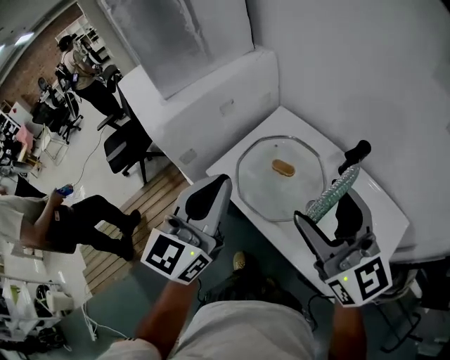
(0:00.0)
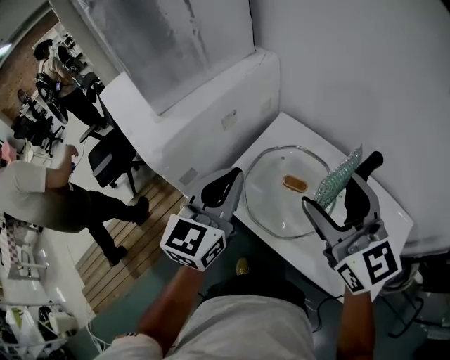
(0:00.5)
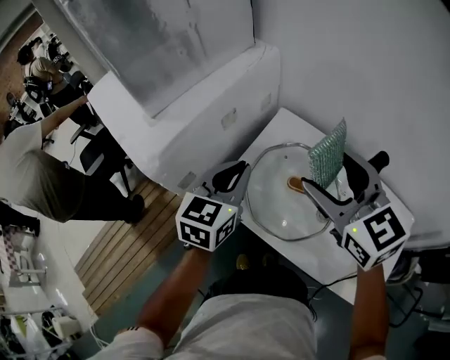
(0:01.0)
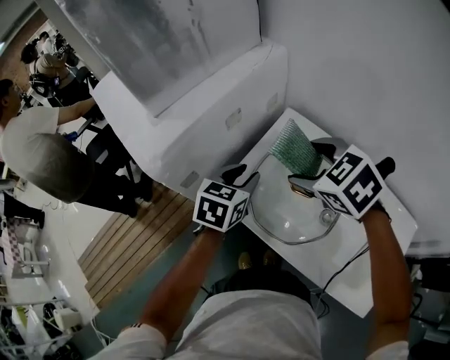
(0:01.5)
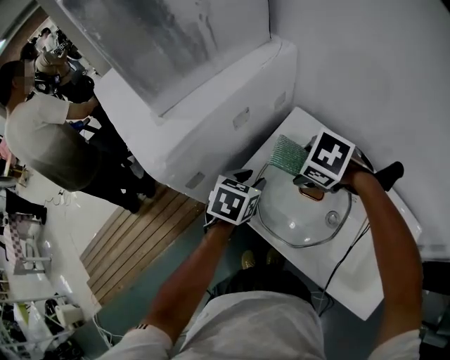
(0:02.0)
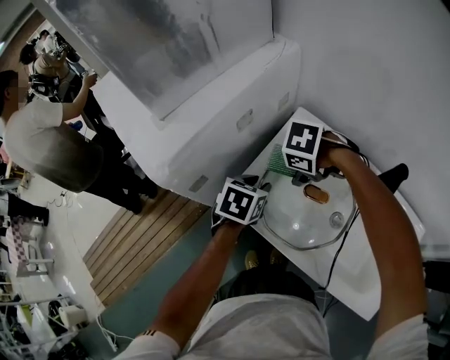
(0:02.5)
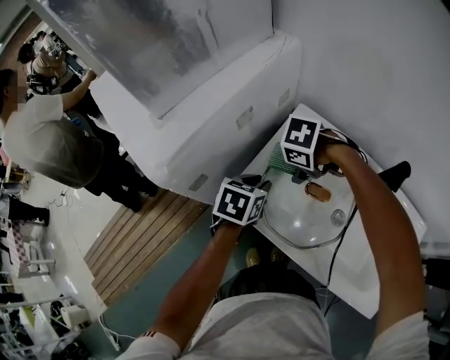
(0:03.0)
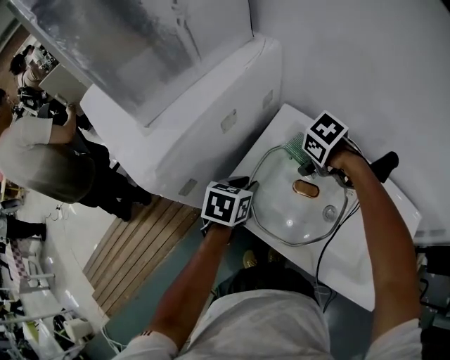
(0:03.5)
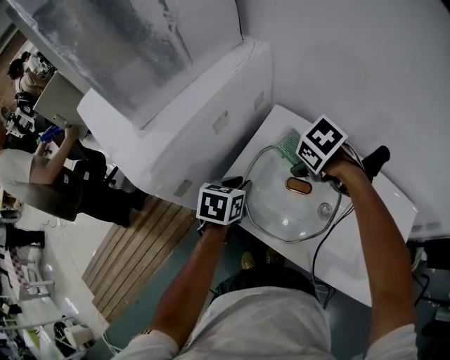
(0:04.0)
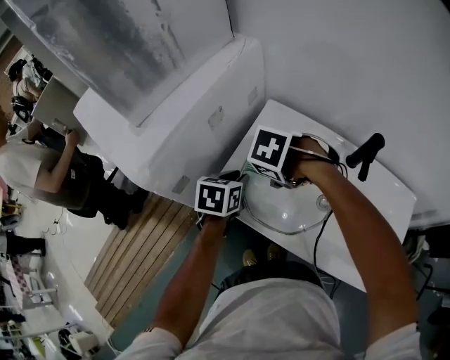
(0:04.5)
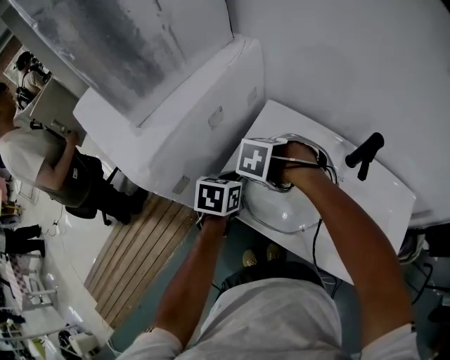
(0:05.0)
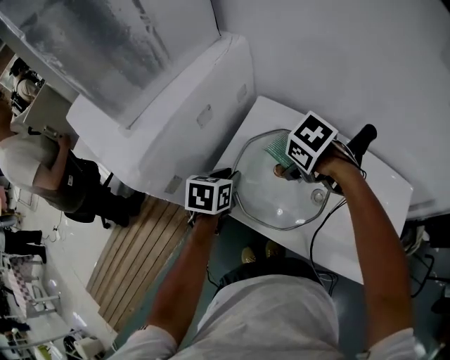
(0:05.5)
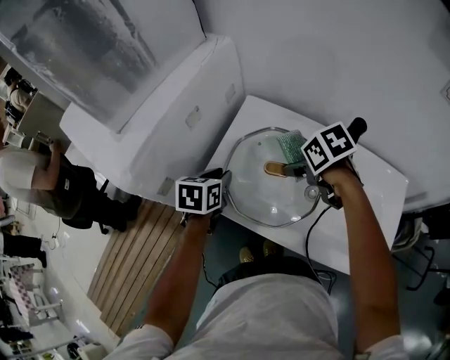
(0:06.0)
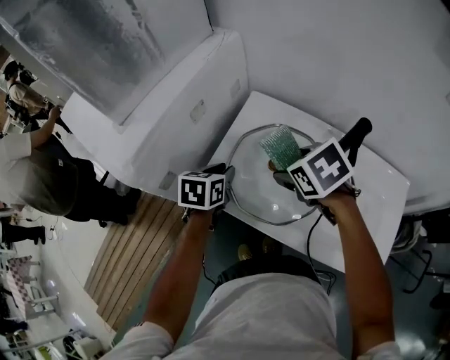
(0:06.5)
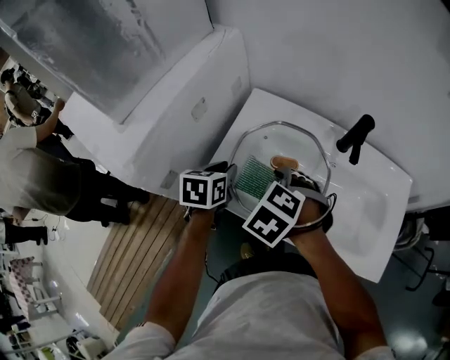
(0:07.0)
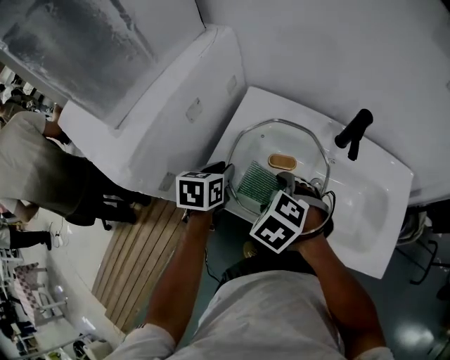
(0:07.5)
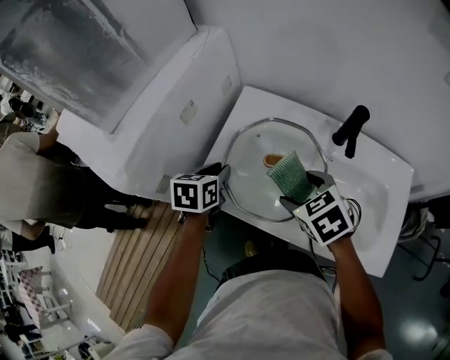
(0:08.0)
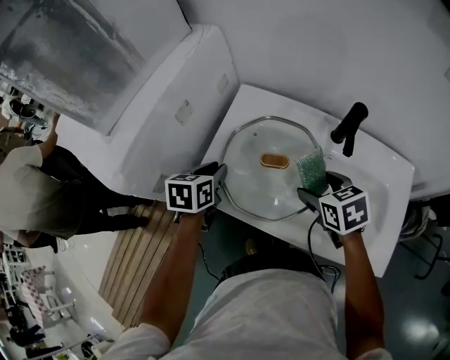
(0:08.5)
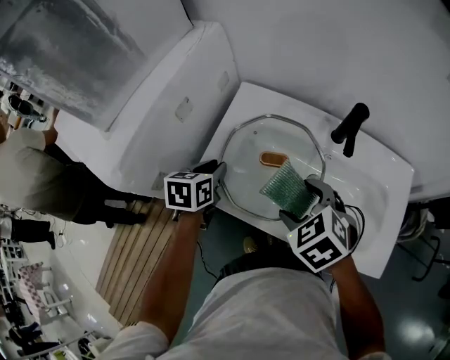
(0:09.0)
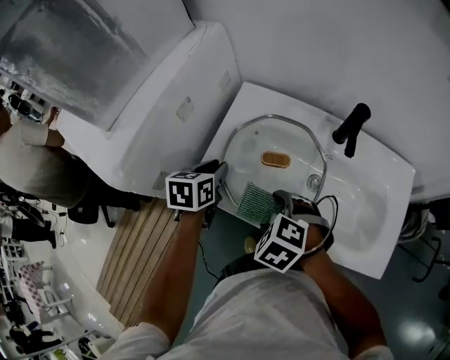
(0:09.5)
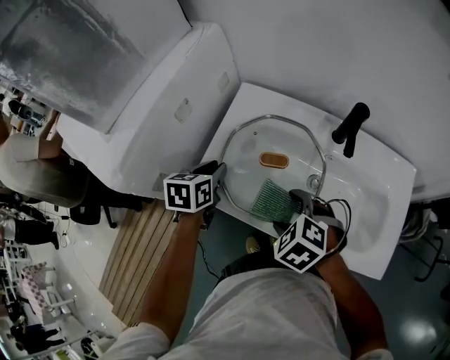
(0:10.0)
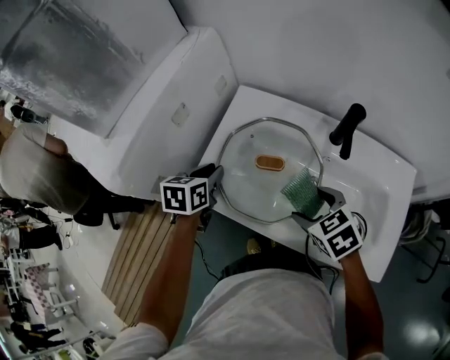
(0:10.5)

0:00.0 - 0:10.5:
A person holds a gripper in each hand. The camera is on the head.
0:00.0 - 0:02.0: The left gripper travels downward by roughly 25 cm, angles its fingers downward, by about 50 degrees, and opens. The right gripper changes place by some 30 cm, and points its fingers roughly 80 degrees further downward.
0:02.0 - 0:04.0: The right gripper shifts by some 5 cm, and turns by approximately 30 degrees.
0:04.0 - 0:06.5: The right gripper ends up some 10 cm from where it was.
0:06.5 - 0:08.5: The right gripper is displaced to the right and downward by approximately 10 cm.
0:08.5 - 0:10.5: The right gripper reaches approximately 15 cm to the left, then returns.

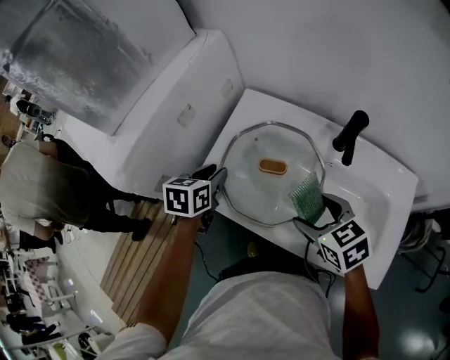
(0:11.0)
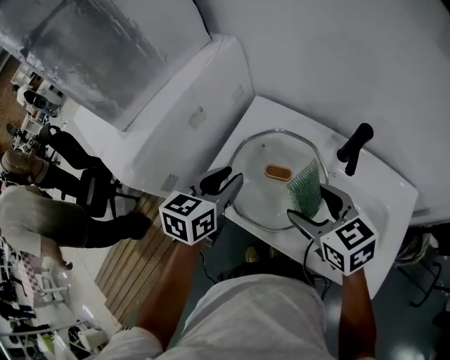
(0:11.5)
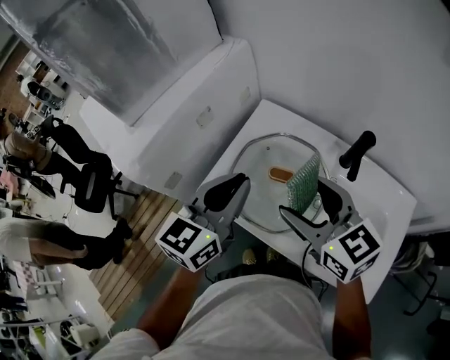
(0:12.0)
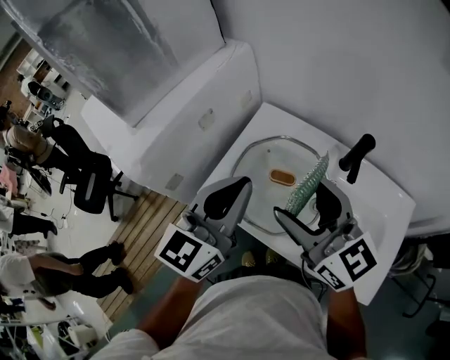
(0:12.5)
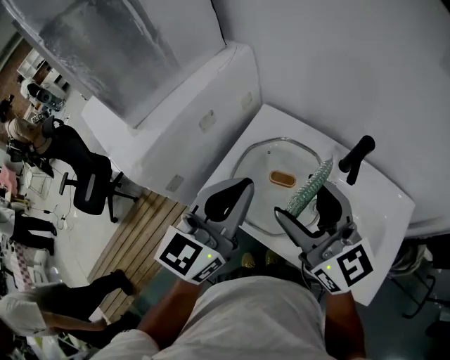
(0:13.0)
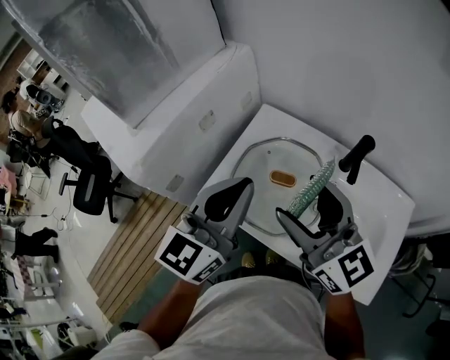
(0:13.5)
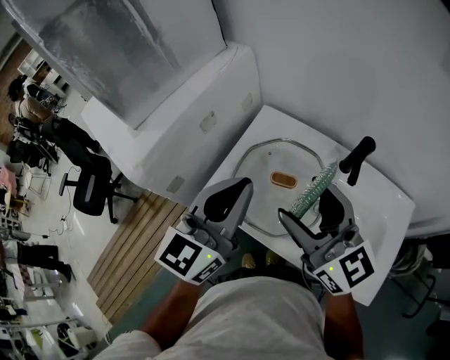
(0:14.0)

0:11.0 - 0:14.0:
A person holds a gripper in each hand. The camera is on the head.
0:11.0 - 0:12.5: The left gripper is displaced upward by roughly 20 cm, angles its fingers upward, by some 40 degrees, and closes up, while the right gripper travels upward and to the left by approximately 20 cm, and tips its fingers upward by approximately 40 degrees.
0:12.5 - 0:14.0: Both grippers stay put.

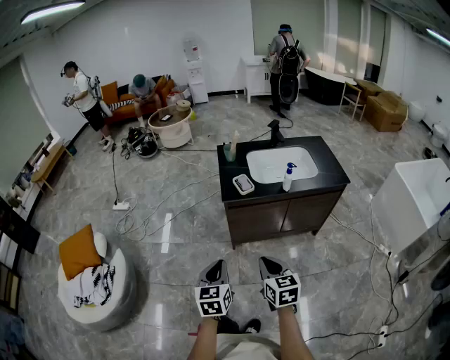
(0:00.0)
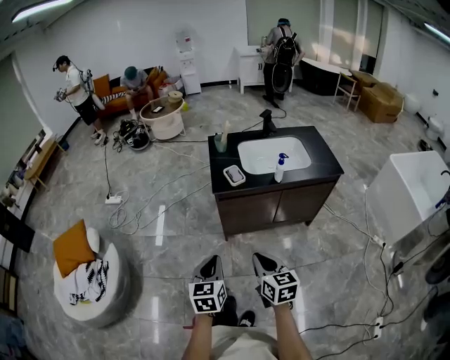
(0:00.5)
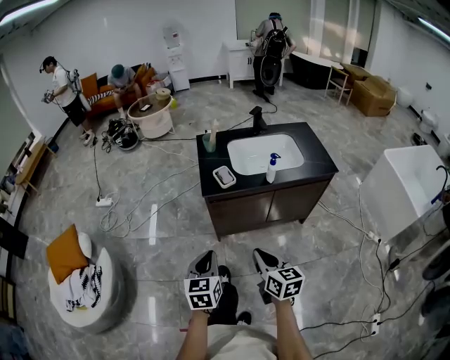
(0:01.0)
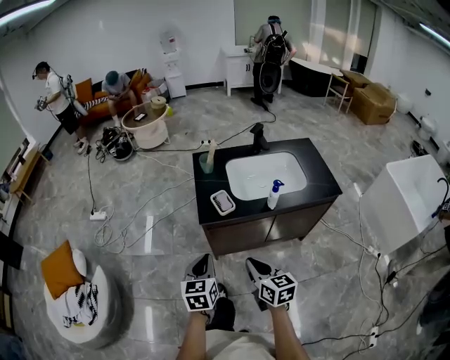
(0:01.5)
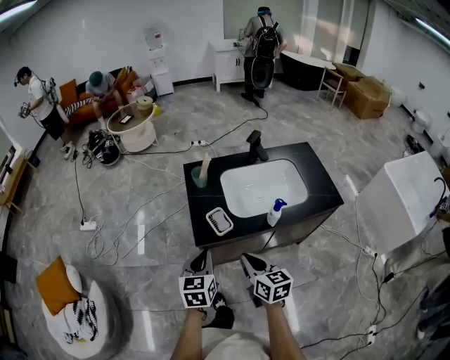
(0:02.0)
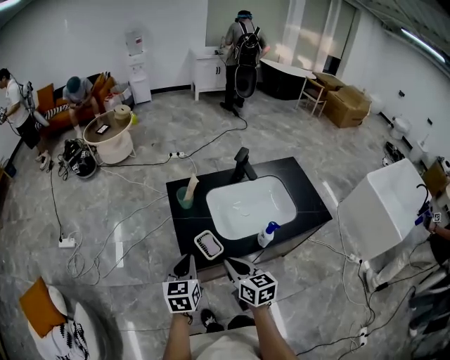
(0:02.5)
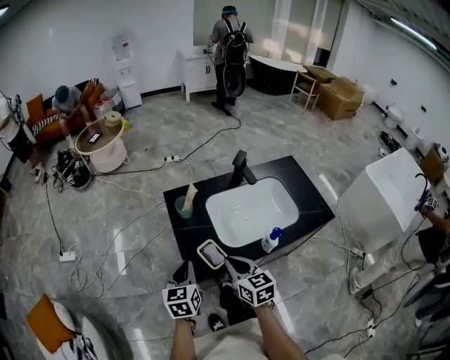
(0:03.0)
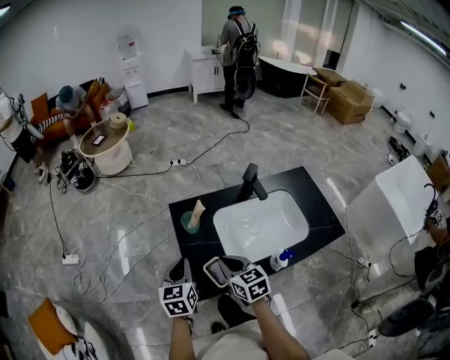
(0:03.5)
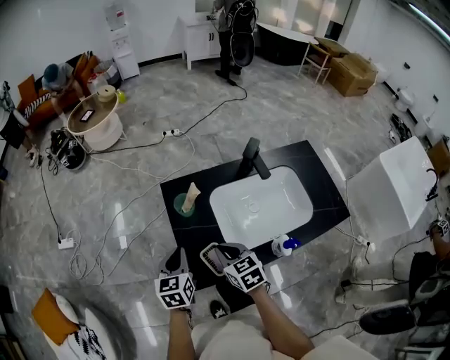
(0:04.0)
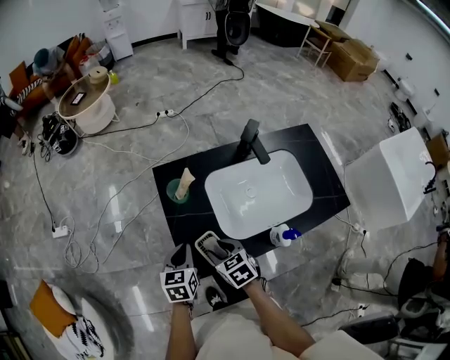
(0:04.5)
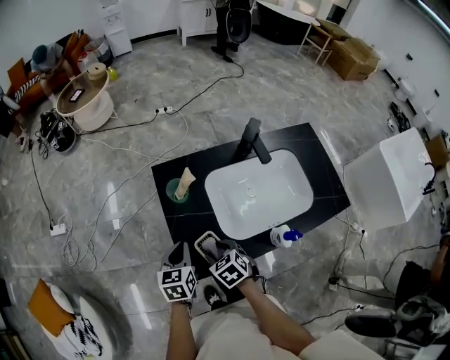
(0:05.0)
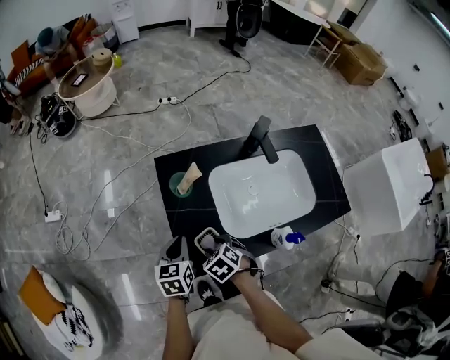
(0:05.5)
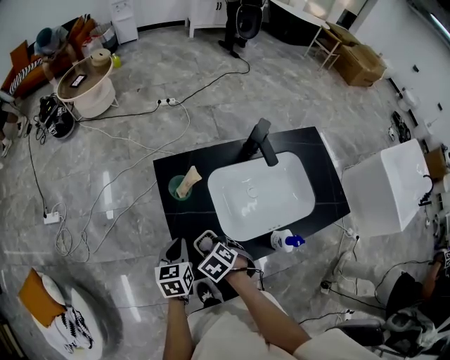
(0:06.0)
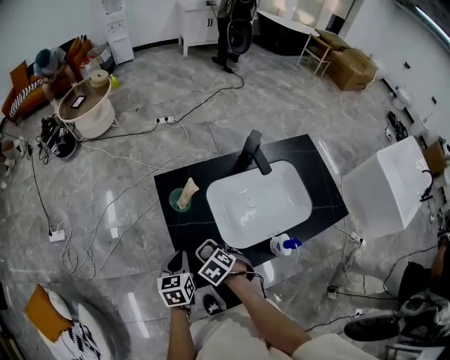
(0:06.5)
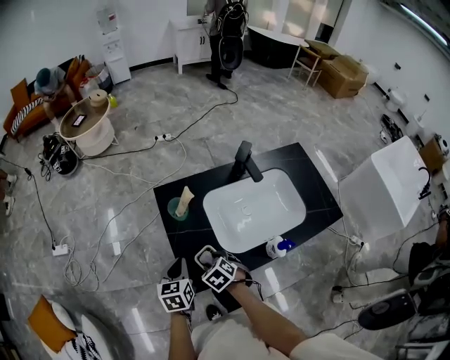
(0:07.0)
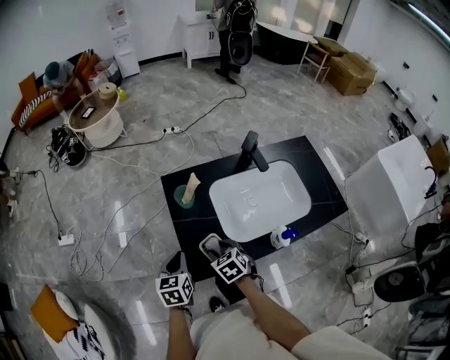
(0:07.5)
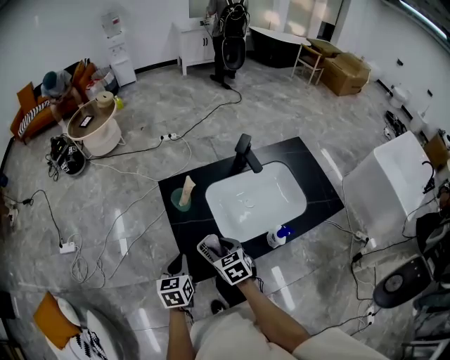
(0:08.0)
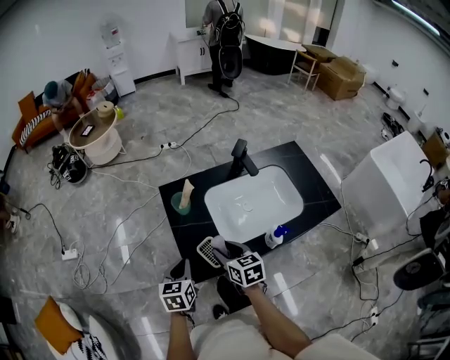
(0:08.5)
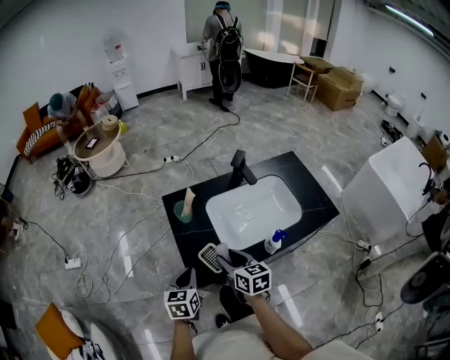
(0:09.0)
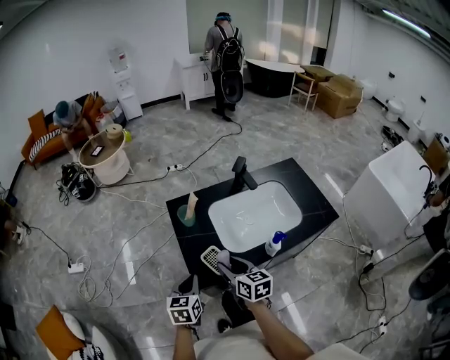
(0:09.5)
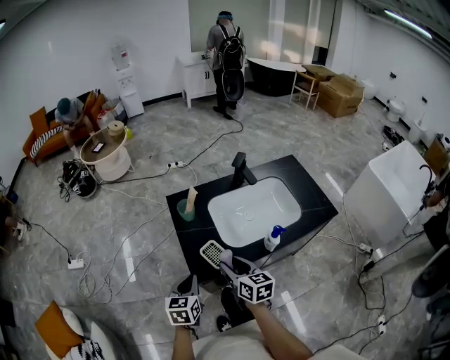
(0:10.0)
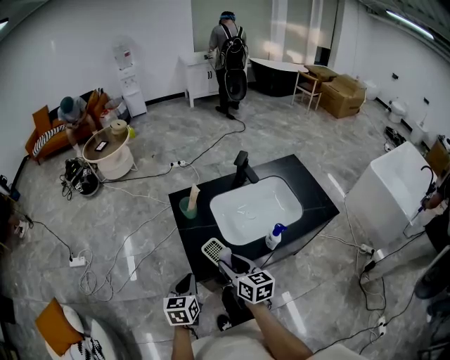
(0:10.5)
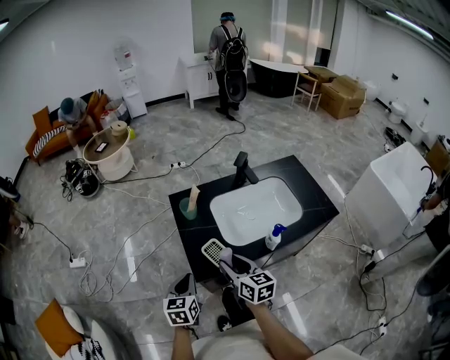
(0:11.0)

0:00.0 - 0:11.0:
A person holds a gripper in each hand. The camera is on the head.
0:00.0 - 0:02.0: The grippers both shift forward by roughly 25 cm.
0:02.0 - 0:03.5: Both grippers travel together forward, about 20 cm.
0:03.5 - 0:05.5: The two grippers go about 10 cm downward. The right gripper points its fingers some 40 degrees further downward, and opens its fingers.
0:05.5 - 0:07.5: The right gripper rotates roughly 20 degrees.
0:07.5 - 0:09.0: The left gripper shifts by about 5 cm. The right gripper moves upward, some 10 cm, and rotates roughly 40 degrees.
0:09.0 - 0:11.0: There are only small adjustments of the grippers.

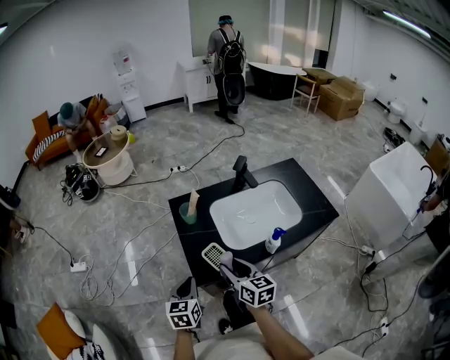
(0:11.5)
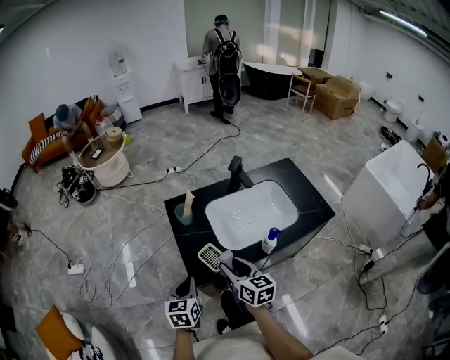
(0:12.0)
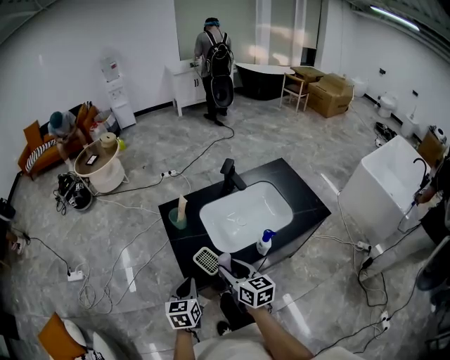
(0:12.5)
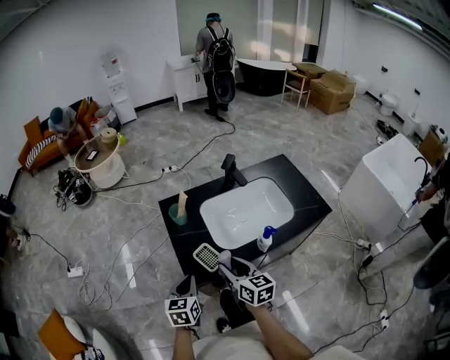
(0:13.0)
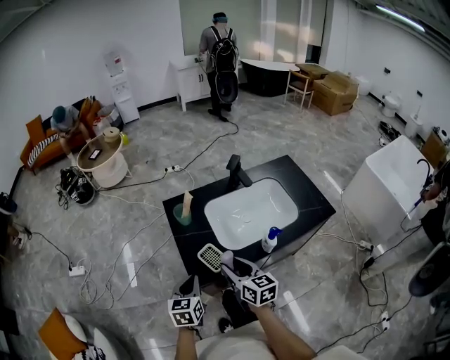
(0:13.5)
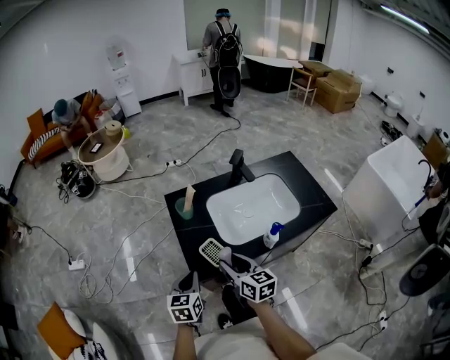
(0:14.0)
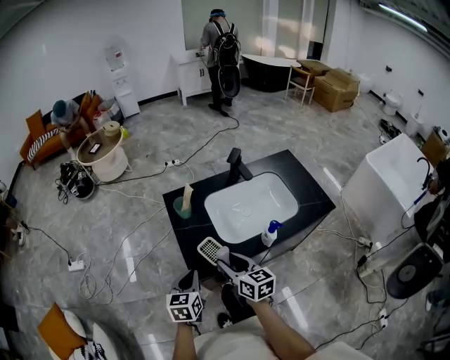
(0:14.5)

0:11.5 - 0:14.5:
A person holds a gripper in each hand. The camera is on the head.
0:11.5 - 0:14.5: The grippers stay close to where they were, moving slightly.
